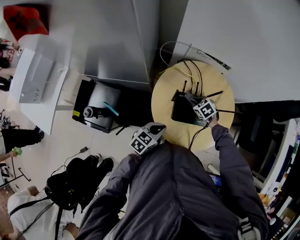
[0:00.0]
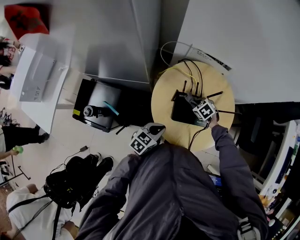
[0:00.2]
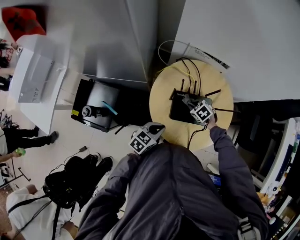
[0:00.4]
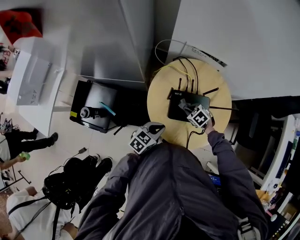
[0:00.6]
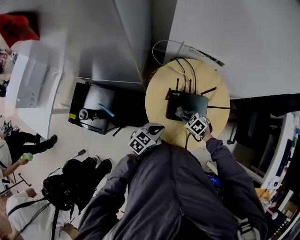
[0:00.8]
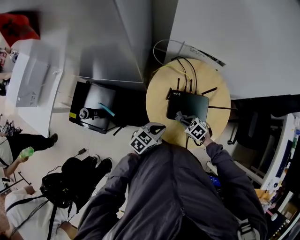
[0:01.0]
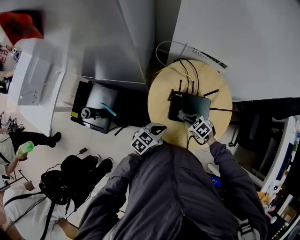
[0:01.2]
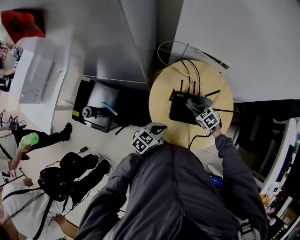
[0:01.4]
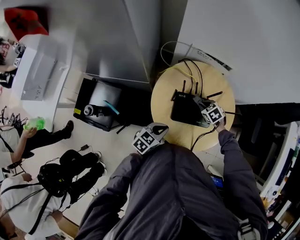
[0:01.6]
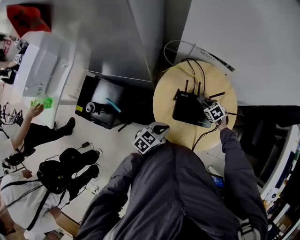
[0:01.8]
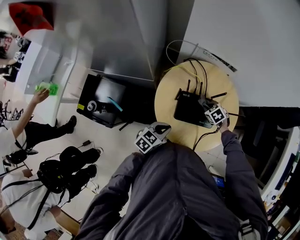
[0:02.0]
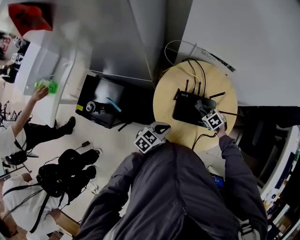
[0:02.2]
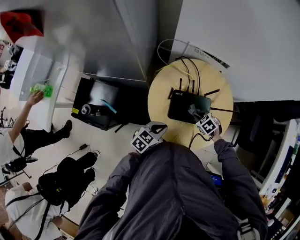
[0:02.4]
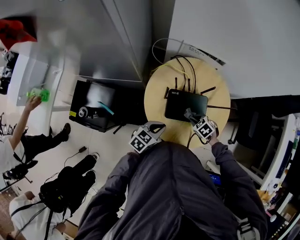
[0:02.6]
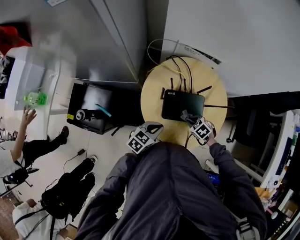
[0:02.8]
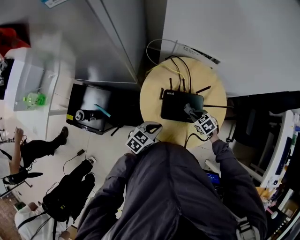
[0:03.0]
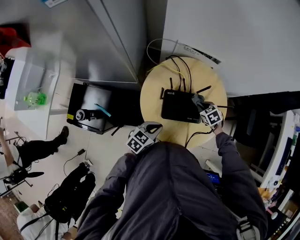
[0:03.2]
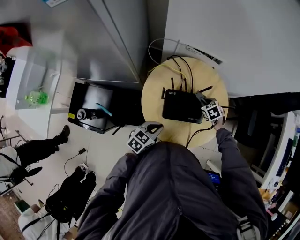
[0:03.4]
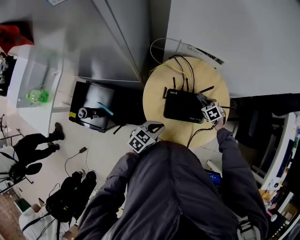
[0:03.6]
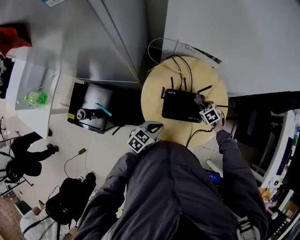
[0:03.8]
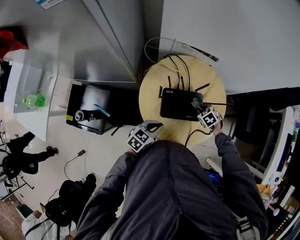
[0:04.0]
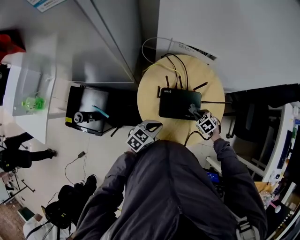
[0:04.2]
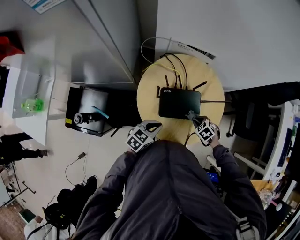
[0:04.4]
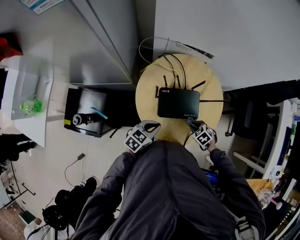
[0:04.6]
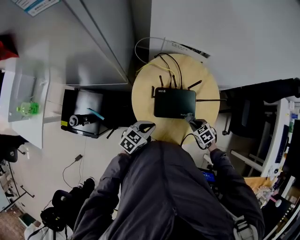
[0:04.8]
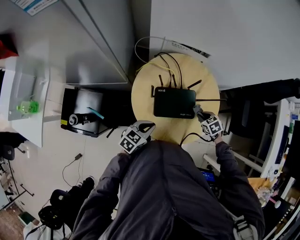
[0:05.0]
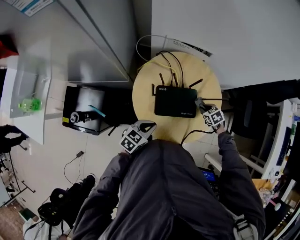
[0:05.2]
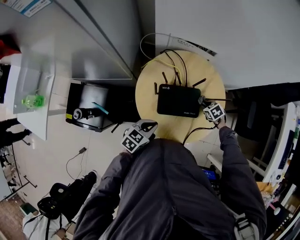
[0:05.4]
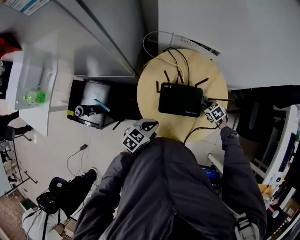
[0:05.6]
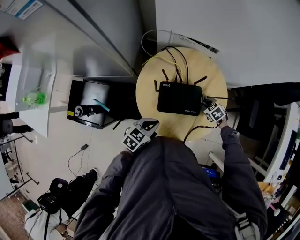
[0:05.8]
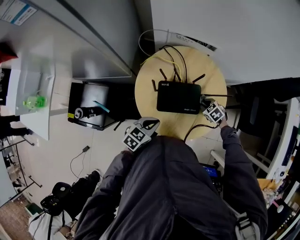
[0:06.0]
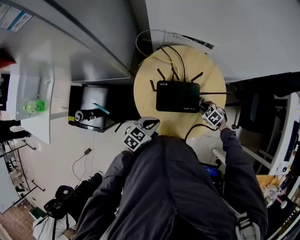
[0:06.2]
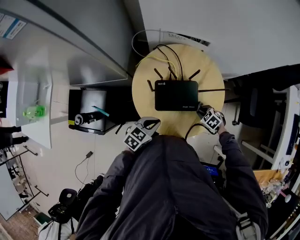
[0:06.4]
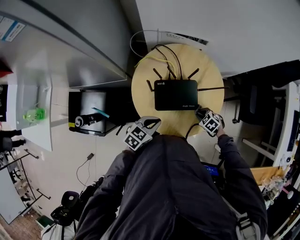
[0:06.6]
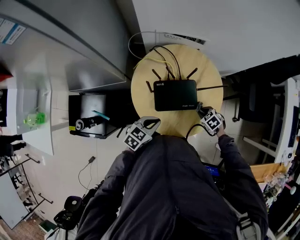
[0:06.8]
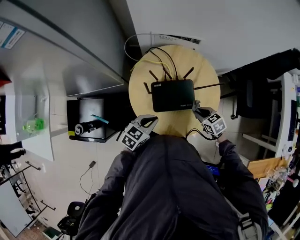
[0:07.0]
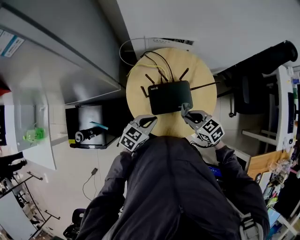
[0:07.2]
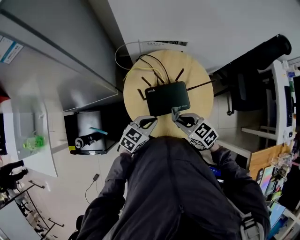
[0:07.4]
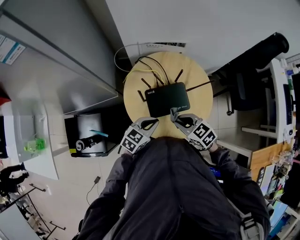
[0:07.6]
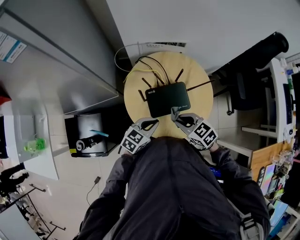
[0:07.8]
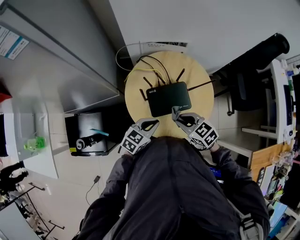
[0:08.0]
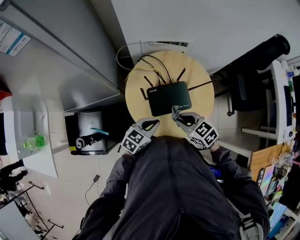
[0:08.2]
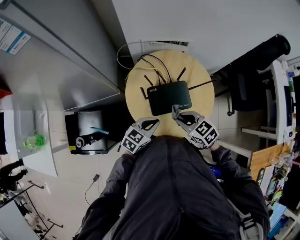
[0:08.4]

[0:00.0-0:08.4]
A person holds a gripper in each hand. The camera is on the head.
0:01.4 to 0:02.8: The right gripper ends up about 10 cm from where it was.
0:04.2 to 0:05.6: The right gripper changes place by some 10 cm.
0:05.6 to 0:07.0: The right gripper ends up approximately 15 cm from where it was, and swivels roughly 20 degrees.
0:07.0 to 0:08.4: The right gripper shifts about 15 cm to the left and upward.

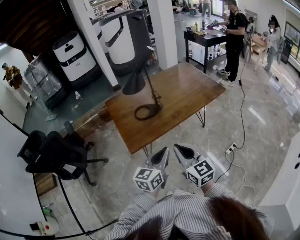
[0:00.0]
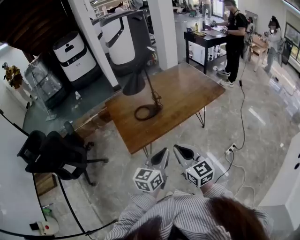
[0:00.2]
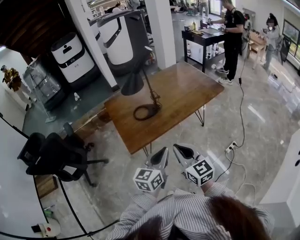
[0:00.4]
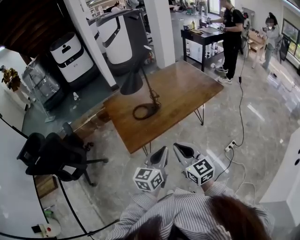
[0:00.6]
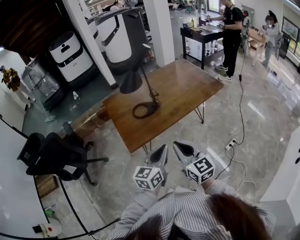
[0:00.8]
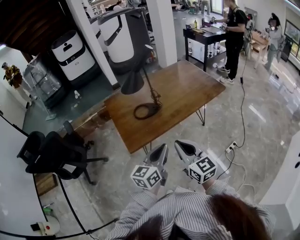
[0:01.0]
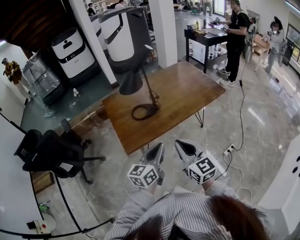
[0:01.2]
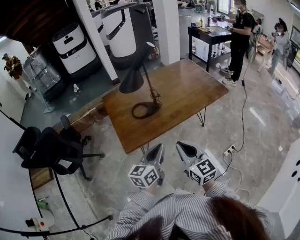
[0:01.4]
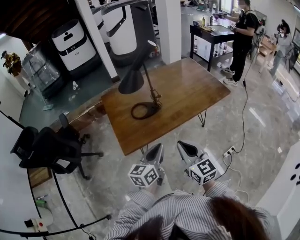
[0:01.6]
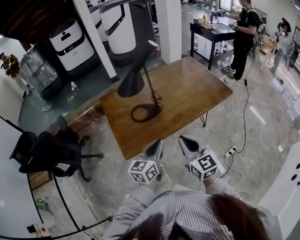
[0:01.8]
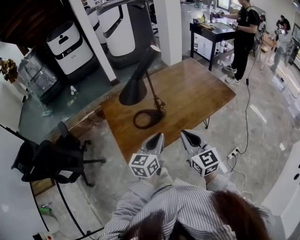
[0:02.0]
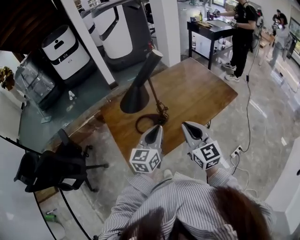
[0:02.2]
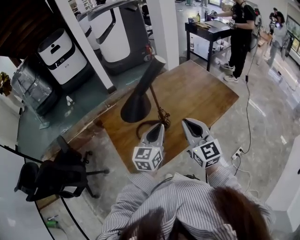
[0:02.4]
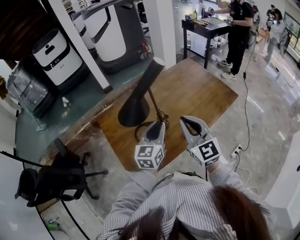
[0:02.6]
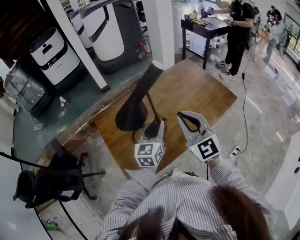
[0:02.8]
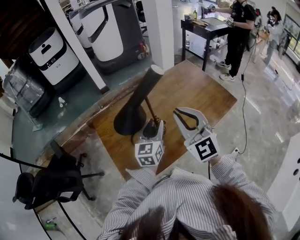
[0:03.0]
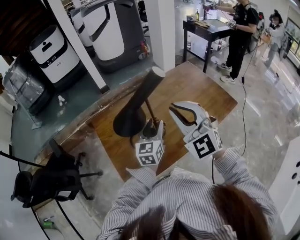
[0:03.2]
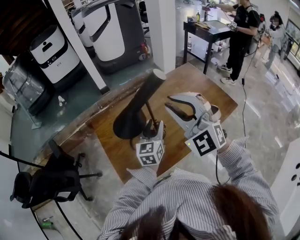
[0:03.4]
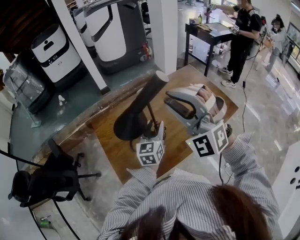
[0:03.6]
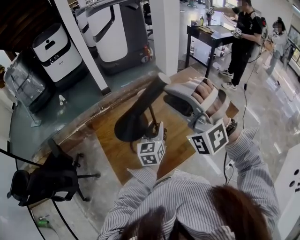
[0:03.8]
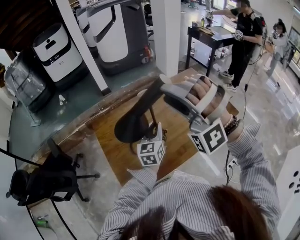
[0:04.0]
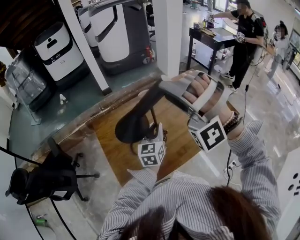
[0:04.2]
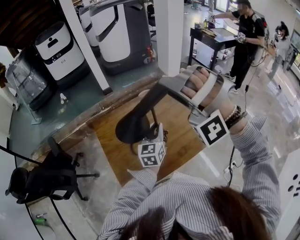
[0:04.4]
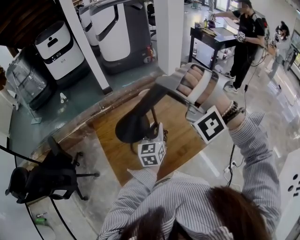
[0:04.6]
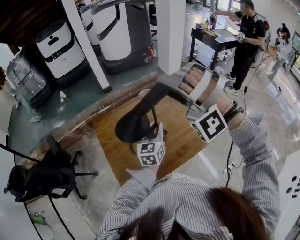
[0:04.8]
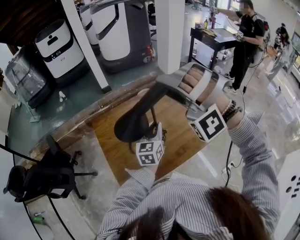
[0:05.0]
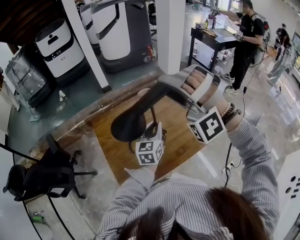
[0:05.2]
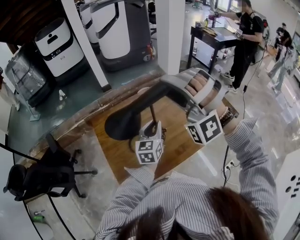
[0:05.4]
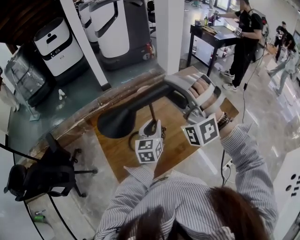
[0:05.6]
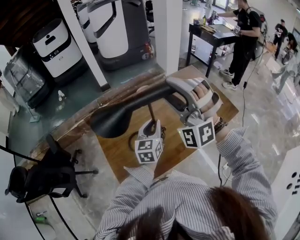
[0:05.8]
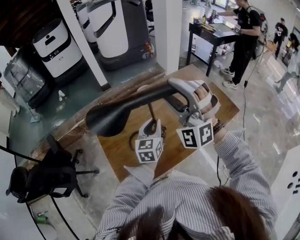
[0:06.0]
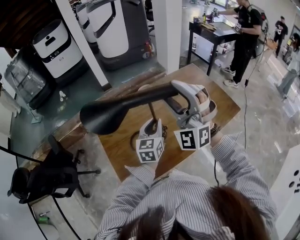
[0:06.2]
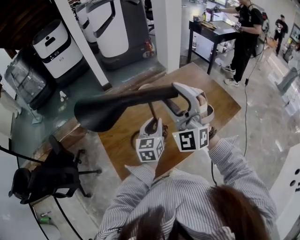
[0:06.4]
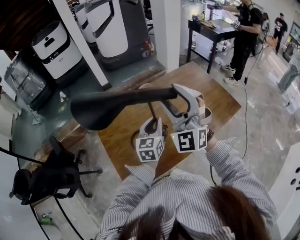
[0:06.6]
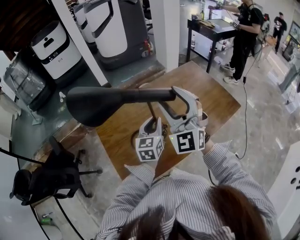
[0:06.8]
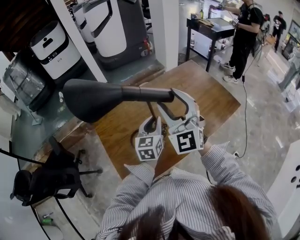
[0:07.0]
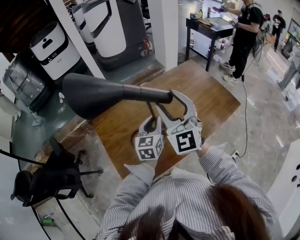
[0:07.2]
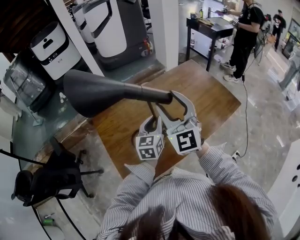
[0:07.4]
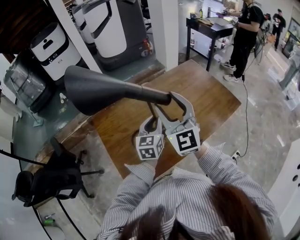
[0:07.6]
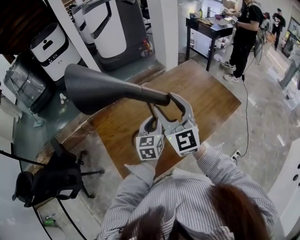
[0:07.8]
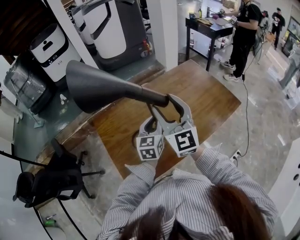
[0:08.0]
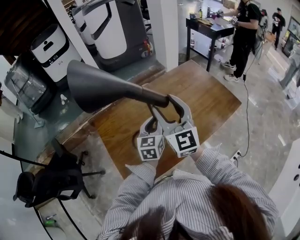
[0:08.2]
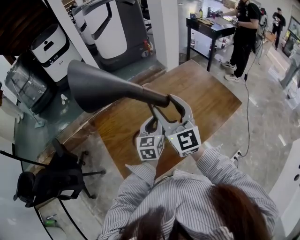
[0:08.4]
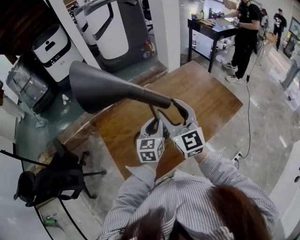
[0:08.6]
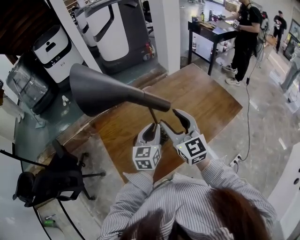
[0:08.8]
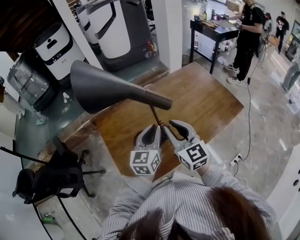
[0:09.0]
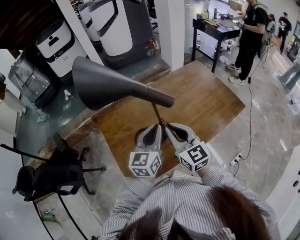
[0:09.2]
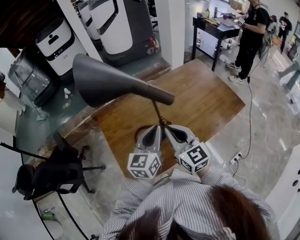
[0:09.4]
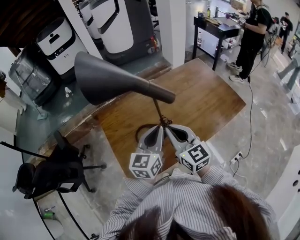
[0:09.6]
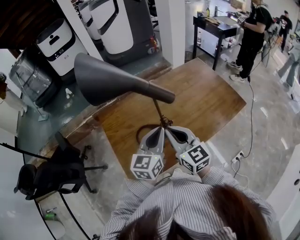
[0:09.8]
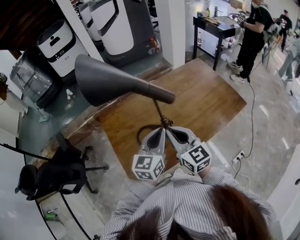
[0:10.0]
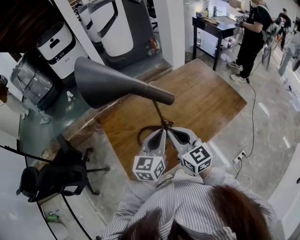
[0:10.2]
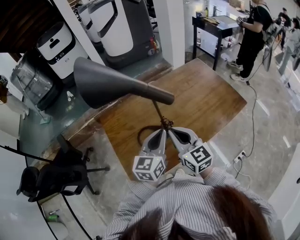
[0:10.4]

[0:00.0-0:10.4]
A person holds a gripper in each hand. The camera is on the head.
0:00.0 to 0:01.4: The right gripper moves some 5 cm, while the left gripper moves approximately 5 cm.
0:01.4 to 0:03.0: Both grippers move forward, some 35 cm. The left gripper opens up, while the right gripper turns by about 30 degrees.
0:03.0 to 0:04.4: The right gripper is displaced upward and forward by roughly 10 cm, rotates around the line of its fingers by about 90 degrees, counterclockwise from behind, and opens its fingers; the left gripper closes.
0:04.4 to 0:06.0: The right gripper rotates roughly 40 degrees.
0:06.0 to 0:07.4: The right gripper twists roughly 50 degrees clockwise, seen from behind.
0:07.4 to 0:09.0: The left gripper shifts by roughly 5 cm; the right gripper moves downward, some 10 cm, turns by roughly 30 degrees, and closes.
0:09.0 to 0:10.4: The right gripper closes up.

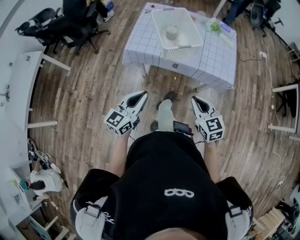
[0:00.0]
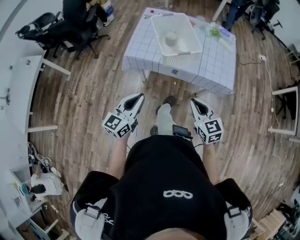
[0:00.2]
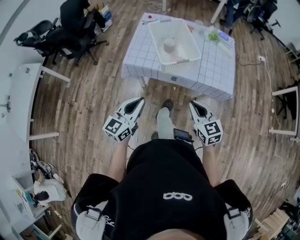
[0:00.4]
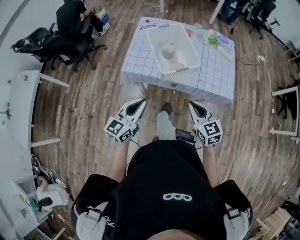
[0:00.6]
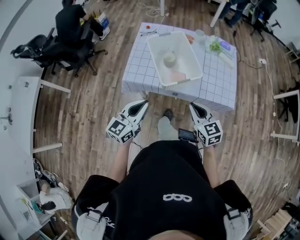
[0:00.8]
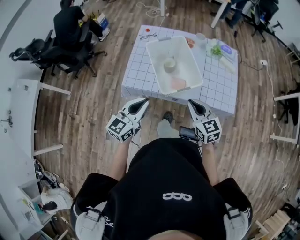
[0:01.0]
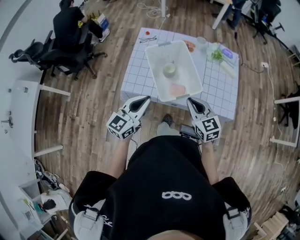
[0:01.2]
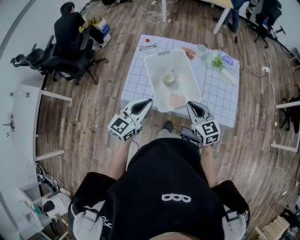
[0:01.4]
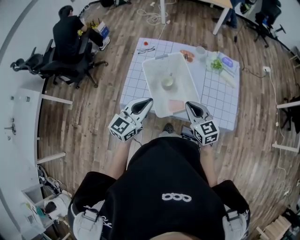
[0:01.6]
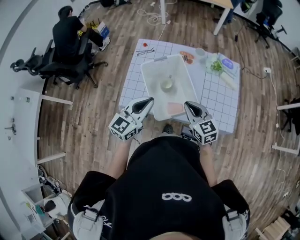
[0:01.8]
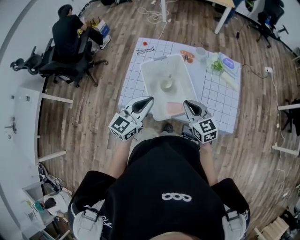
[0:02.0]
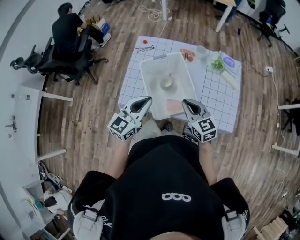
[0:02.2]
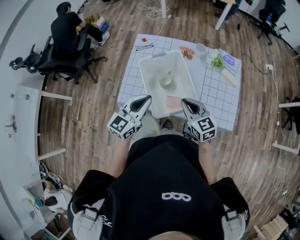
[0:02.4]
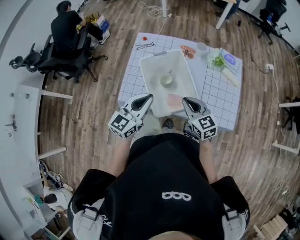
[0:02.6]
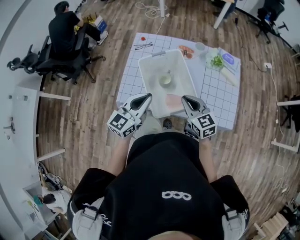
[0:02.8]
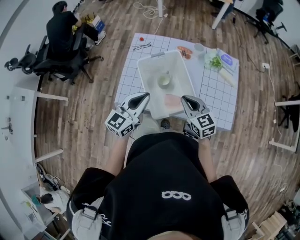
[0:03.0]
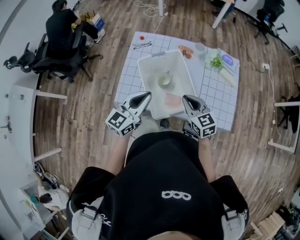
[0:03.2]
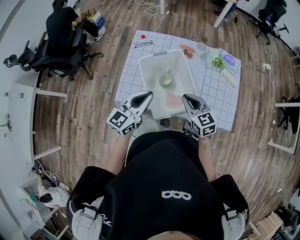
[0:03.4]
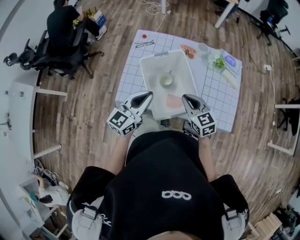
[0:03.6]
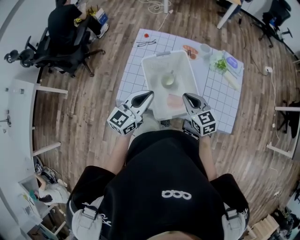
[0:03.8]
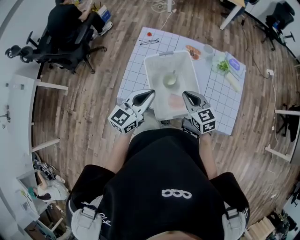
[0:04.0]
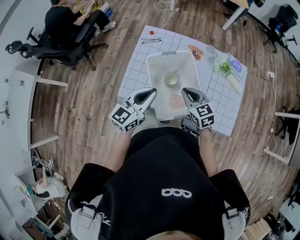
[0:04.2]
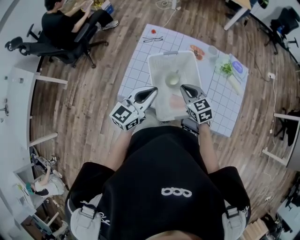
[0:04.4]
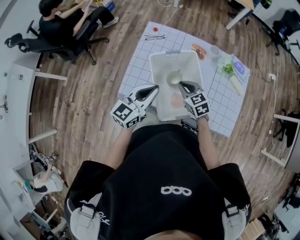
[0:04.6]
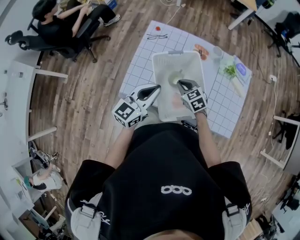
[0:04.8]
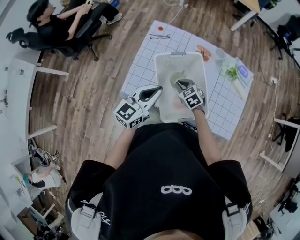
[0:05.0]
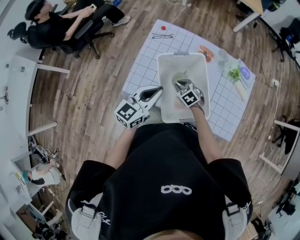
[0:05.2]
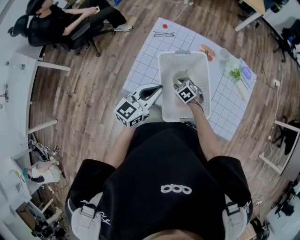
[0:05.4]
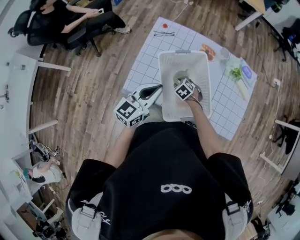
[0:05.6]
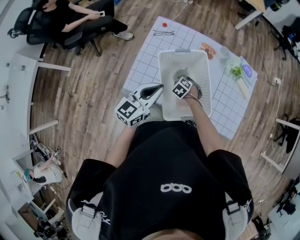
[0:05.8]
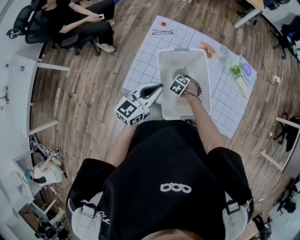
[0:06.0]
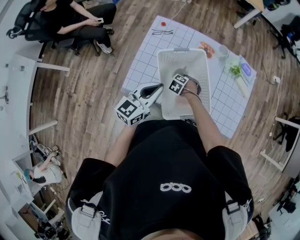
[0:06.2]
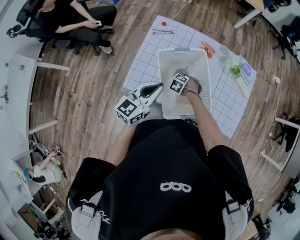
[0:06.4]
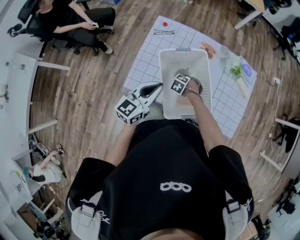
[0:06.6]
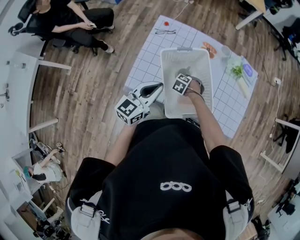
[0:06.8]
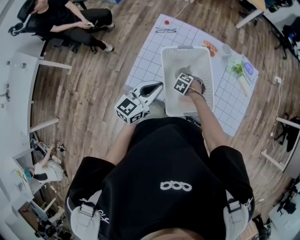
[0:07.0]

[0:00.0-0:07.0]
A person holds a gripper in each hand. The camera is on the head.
0:00.0 to 0:01.4: The two grippers go some 30 cm forward.
0:01.4 to 0:02.8: Both grippers travel together forward, about 5 cm.
0:02.8 to 0:04.2: The right gripper moves forward, roughly 5 cm.
0:04.2 to 0:05.6: The right gripper is displaced downward by approximately 20 cm, and angles its fingers downward, by roughly 40 degrees.
